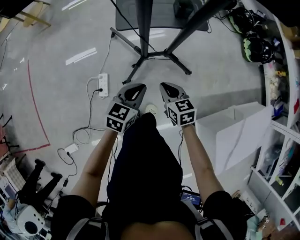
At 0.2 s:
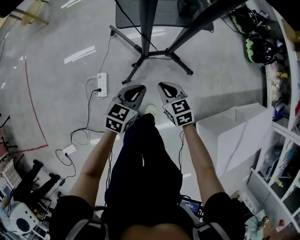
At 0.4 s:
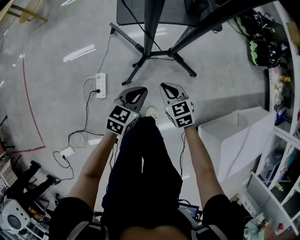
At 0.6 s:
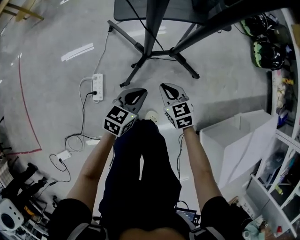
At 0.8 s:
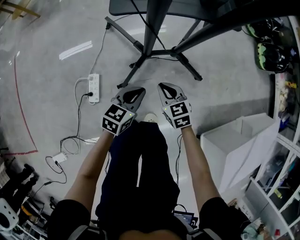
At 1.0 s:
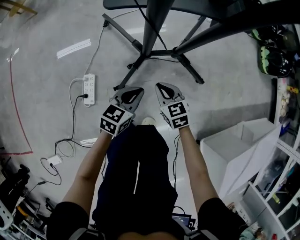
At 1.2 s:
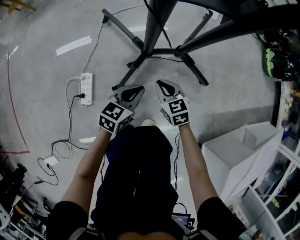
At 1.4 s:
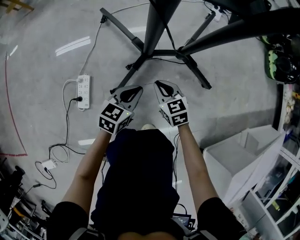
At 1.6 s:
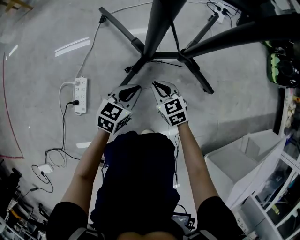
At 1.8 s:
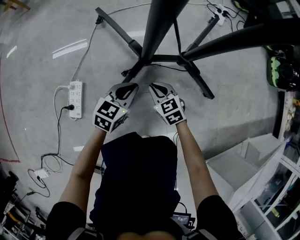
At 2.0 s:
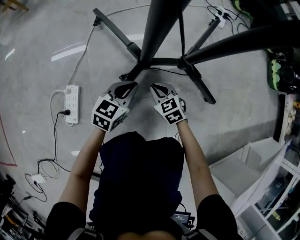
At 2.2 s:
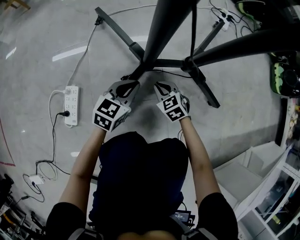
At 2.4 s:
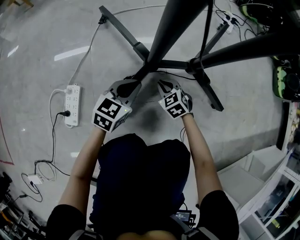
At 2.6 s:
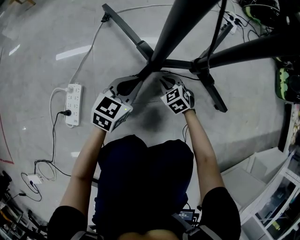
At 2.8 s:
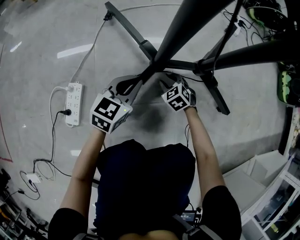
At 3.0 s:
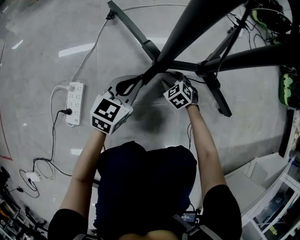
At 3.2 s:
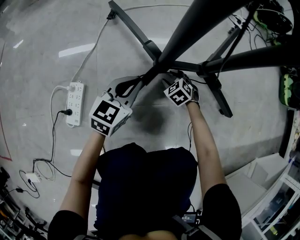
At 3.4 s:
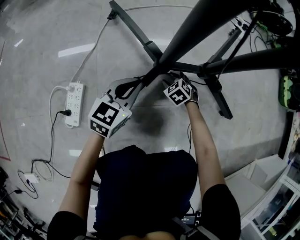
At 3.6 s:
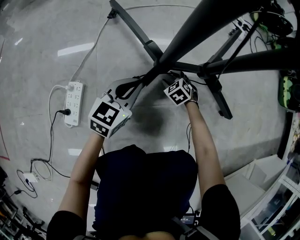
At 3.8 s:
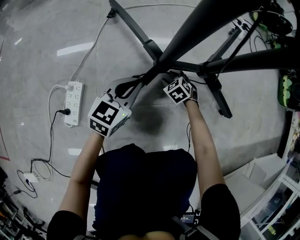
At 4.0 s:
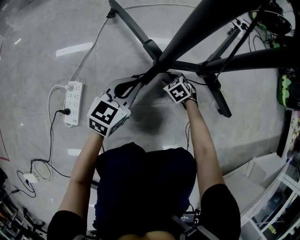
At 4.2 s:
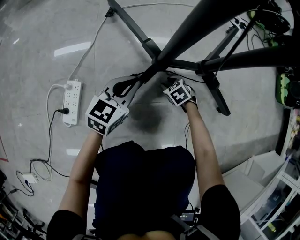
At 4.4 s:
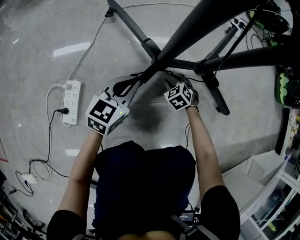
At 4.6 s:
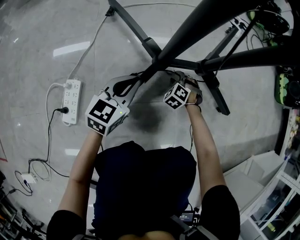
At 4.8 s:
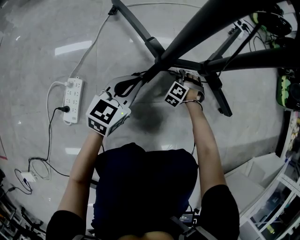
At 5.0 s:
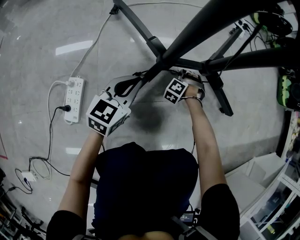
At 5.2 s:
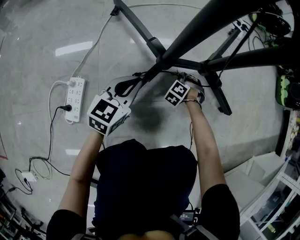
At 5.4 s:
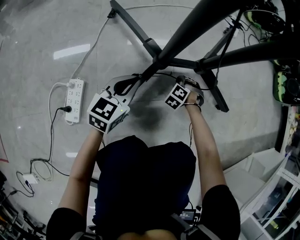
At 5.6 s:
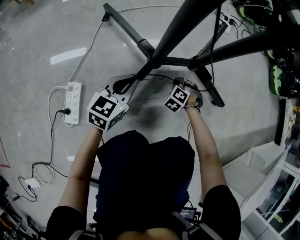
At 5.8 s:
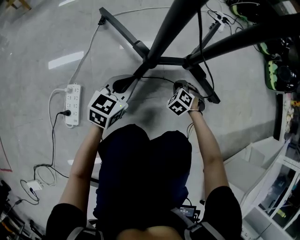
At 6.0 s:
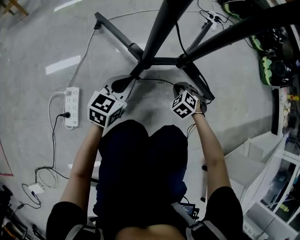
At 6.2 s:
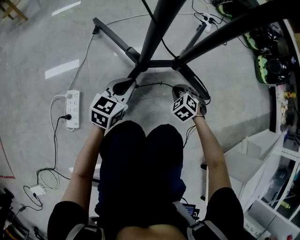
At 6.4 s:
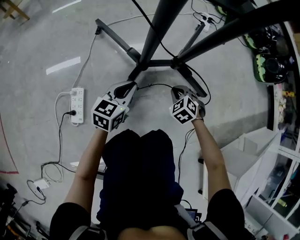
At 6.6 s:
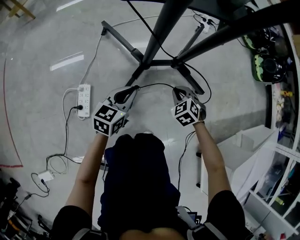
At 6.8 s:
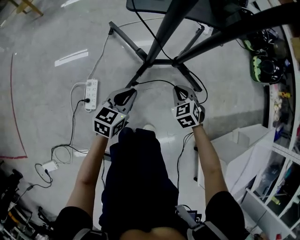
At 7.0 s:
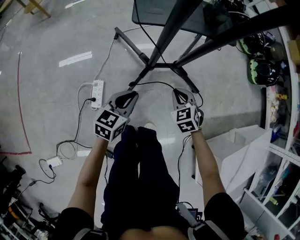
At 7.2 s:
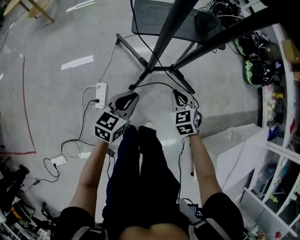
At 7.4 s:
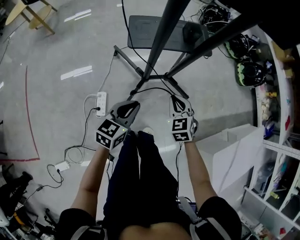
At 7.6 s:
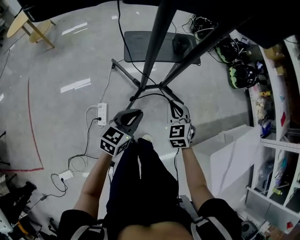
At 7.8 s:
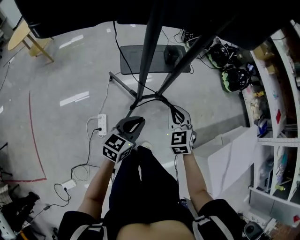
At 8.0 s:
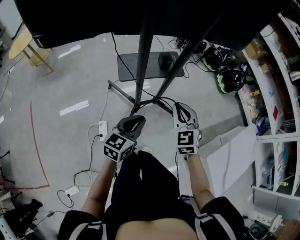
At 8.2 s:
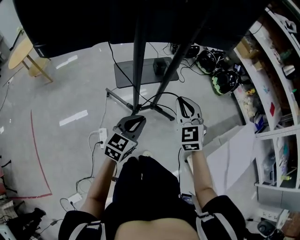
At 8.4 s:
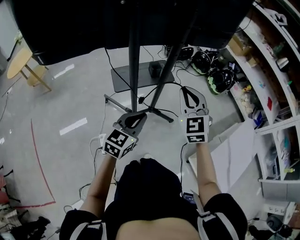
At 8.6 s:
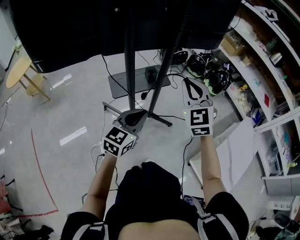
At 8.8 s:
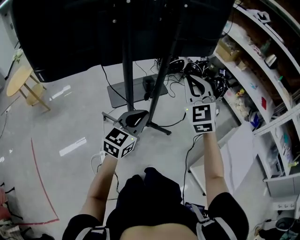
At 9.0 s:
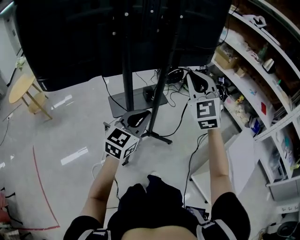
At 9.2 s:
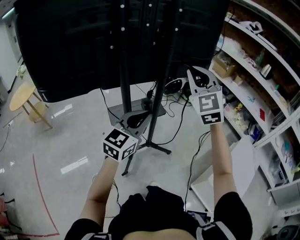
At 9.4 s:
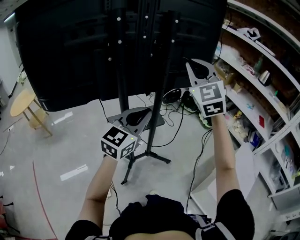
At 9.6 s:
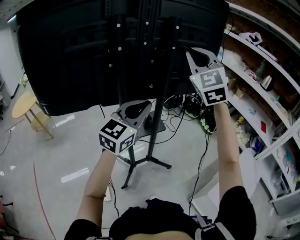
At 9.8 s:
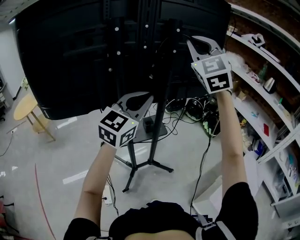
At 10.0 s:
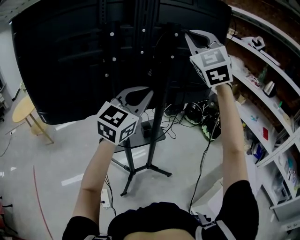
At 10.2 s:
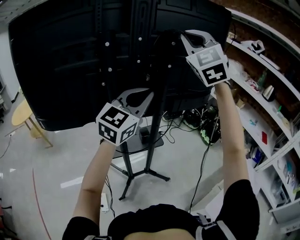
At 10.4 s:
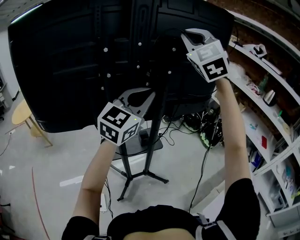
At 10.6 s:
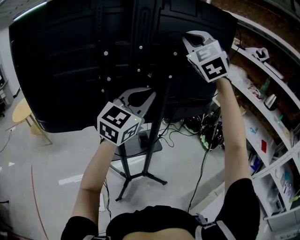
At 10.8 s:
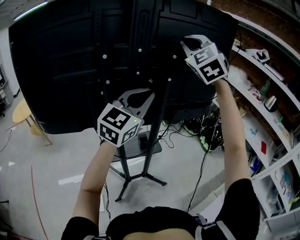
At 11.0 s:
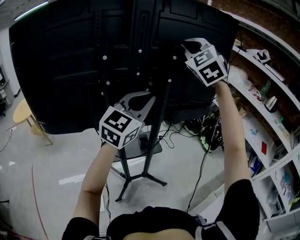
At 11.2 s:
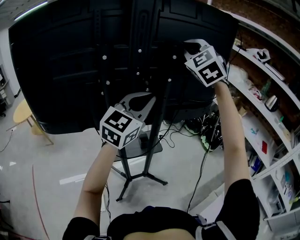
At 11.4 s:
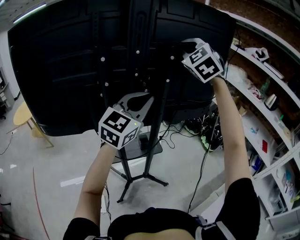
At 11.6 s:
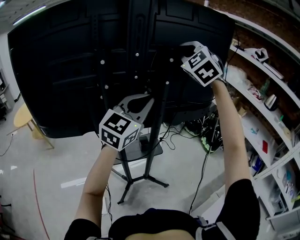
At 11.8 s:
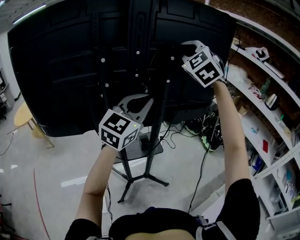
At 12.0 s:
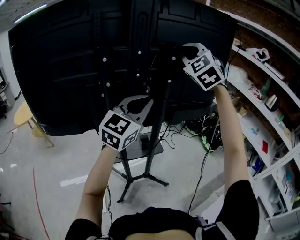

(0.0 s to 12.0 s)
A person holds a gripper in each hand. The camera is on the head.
0.0 s - 1.6 s: The two grippers go approximately 40 cm downward.
1.6 s - 3.0 s: The left gripper moves downward and forward, about 10 cm; the right gripper moves downward and forward, approximately 25 cm, swivels some 30 degrees, and opens up.
3.0 s - 4.4 s: There are only small adjustments of the grippers.
4.4 s - 6.0 s: The right gripper is displaced upward by some 10 cm, and closes its fingers. The left gripper changes place by about 5 cm.
6.0 s - 7.6 s: Both grippers move upward, roughly 60 cm. The right gripper changes its angle by roughly 40 degrees.
7.6 s - 9.0 s: The two grippers go about 40 cm upward. The left gripper swivels approximately 30 degrees; the right gripper points its fingers approximately 40 degrees further upward.
9.0 s - 10.4 s: The grippers both shift upward and forward by about 35 cm.
10.4 s - 12.0 s: The right gripper travels downward by some 5 cm.

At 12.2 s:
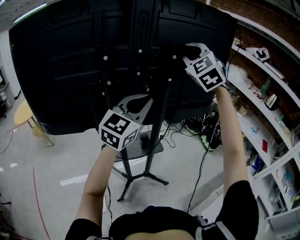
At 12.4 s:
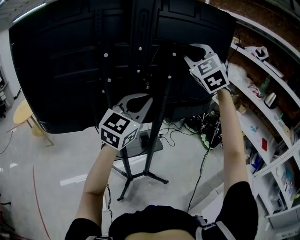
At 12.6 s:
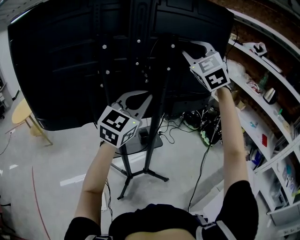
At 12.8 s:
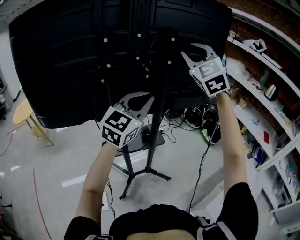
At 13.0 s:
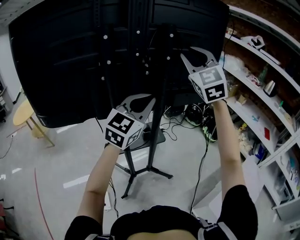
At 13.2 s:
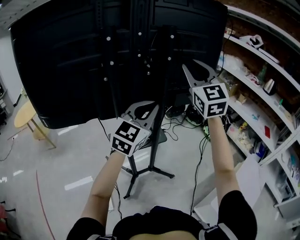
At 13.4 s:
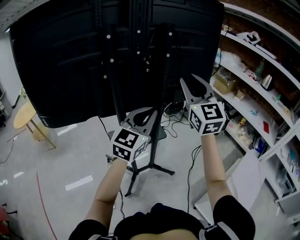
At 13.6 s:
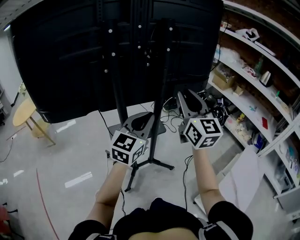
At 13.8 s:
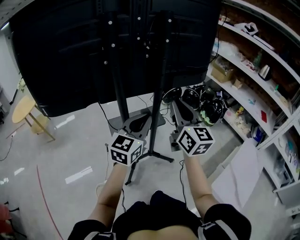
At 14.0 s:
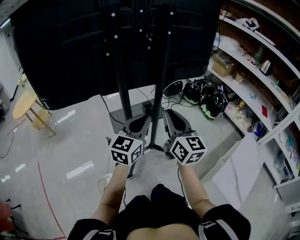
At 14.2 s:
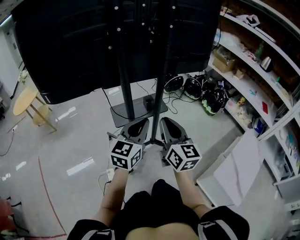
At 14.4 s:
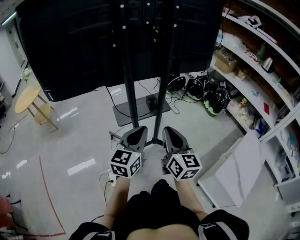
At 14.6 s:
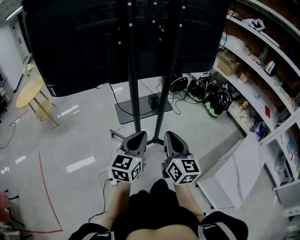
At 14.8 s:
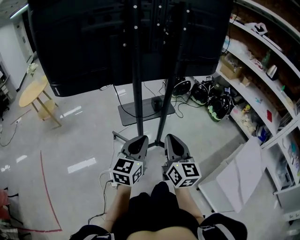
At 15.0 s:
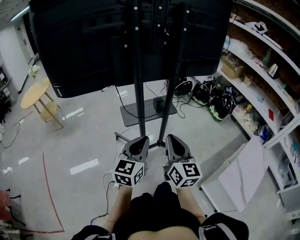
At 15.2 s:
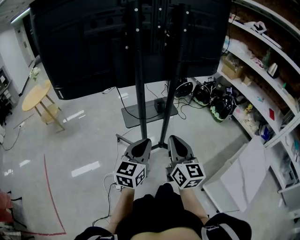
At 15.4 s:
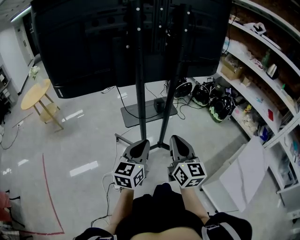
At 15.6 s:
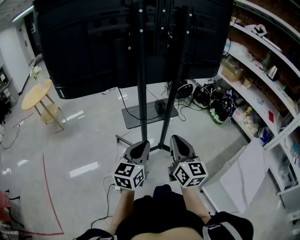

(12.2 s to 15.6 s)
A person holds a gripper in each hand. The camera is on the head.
12.2 s - 13.8 s: The left gripper heads downward and backward, covering about 25 cm. Meanwhile the right gripper is displaced downward and backward by about 35 cm, and rotates around the line of its fingers by some 60 degrees, clockwise from behind.
13.8 s - 15.6 s: The left gripper shifts about 20 cm backward, downward and to the left. Meanwhile the right gripper heads backward and downward, covering about 20 cm.

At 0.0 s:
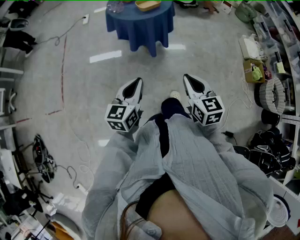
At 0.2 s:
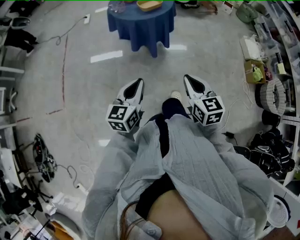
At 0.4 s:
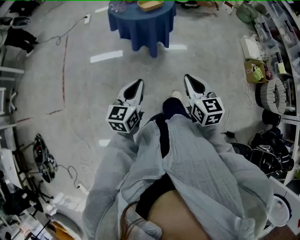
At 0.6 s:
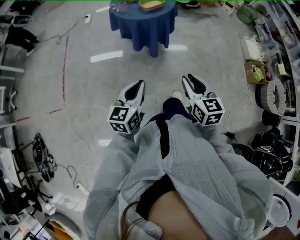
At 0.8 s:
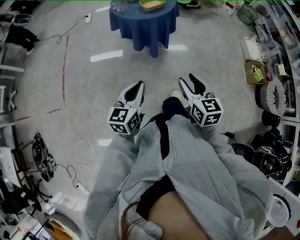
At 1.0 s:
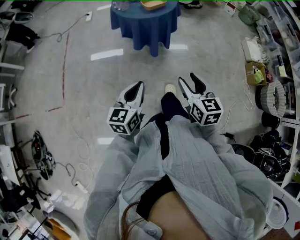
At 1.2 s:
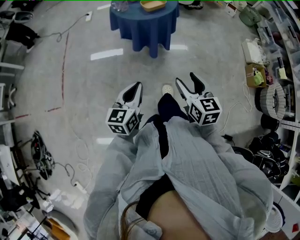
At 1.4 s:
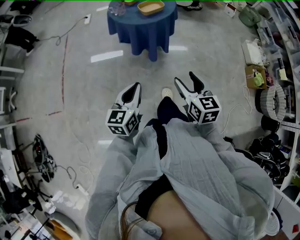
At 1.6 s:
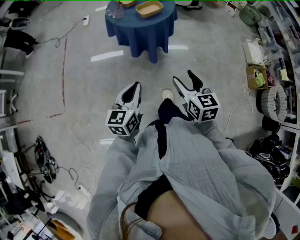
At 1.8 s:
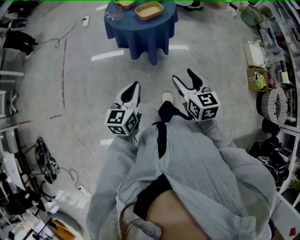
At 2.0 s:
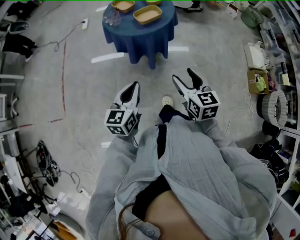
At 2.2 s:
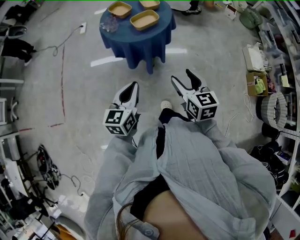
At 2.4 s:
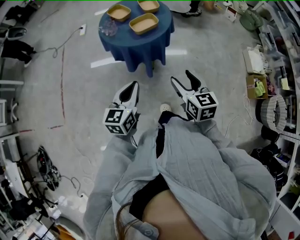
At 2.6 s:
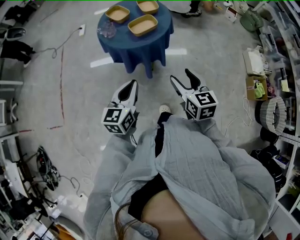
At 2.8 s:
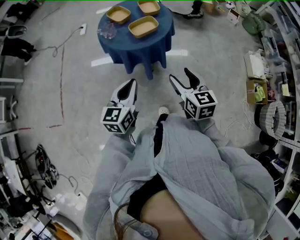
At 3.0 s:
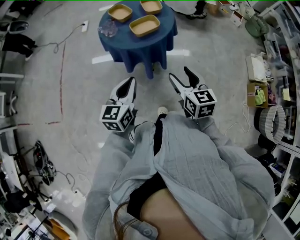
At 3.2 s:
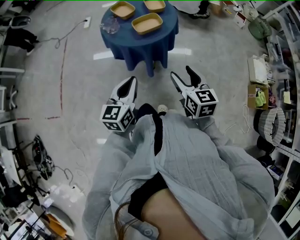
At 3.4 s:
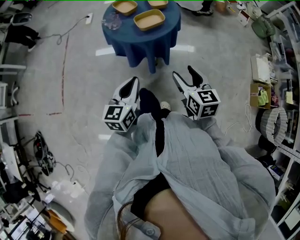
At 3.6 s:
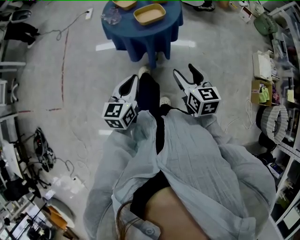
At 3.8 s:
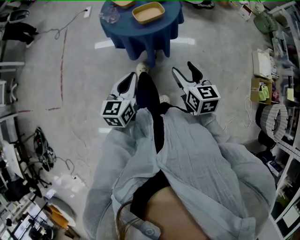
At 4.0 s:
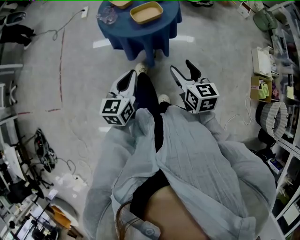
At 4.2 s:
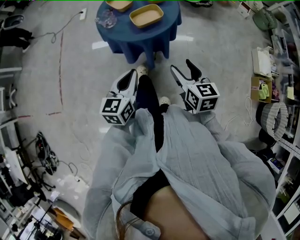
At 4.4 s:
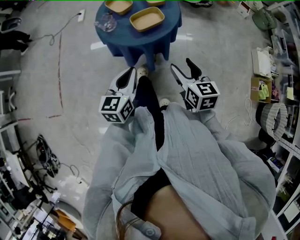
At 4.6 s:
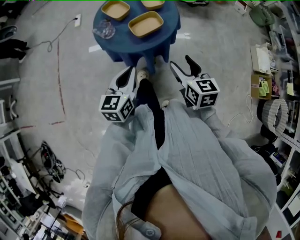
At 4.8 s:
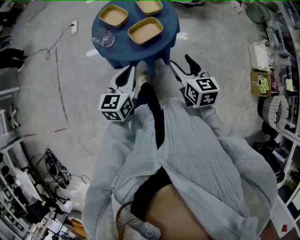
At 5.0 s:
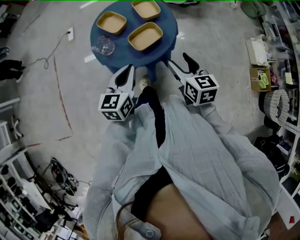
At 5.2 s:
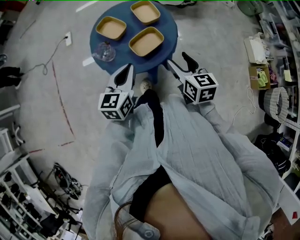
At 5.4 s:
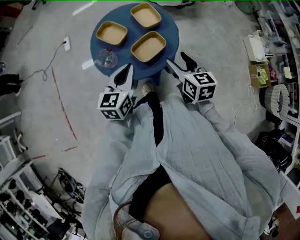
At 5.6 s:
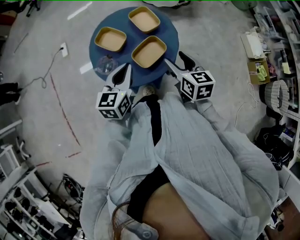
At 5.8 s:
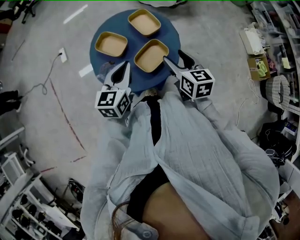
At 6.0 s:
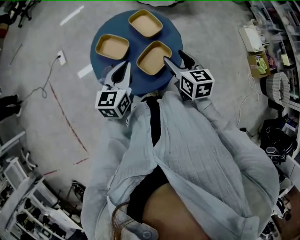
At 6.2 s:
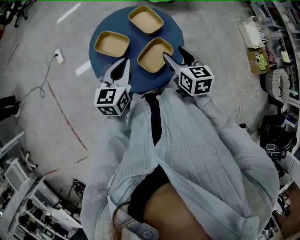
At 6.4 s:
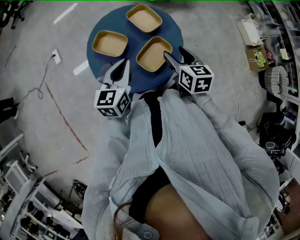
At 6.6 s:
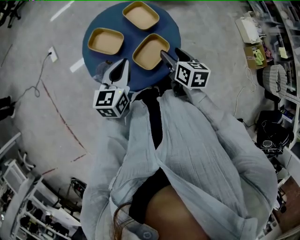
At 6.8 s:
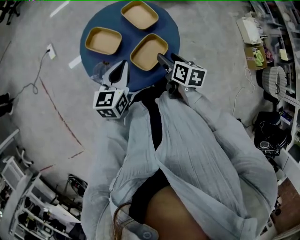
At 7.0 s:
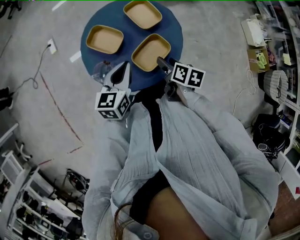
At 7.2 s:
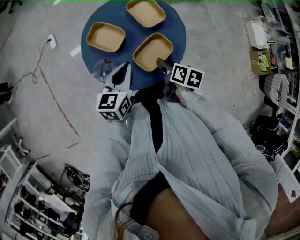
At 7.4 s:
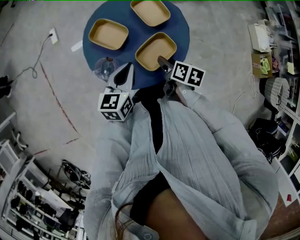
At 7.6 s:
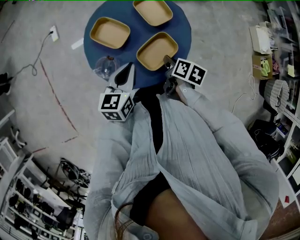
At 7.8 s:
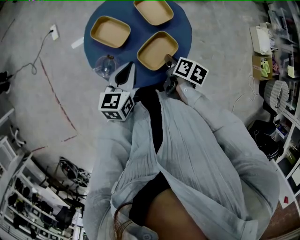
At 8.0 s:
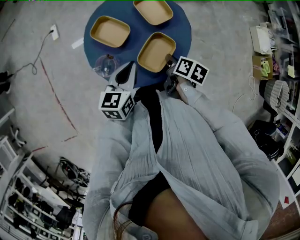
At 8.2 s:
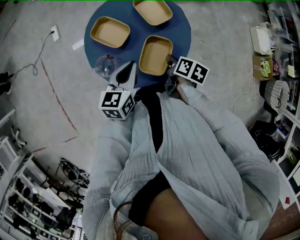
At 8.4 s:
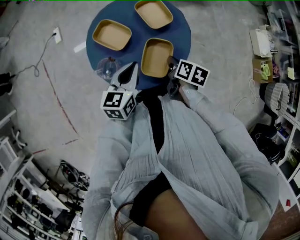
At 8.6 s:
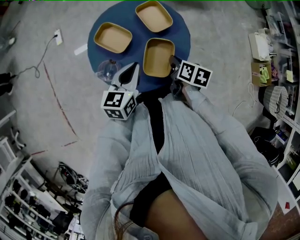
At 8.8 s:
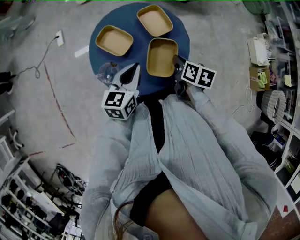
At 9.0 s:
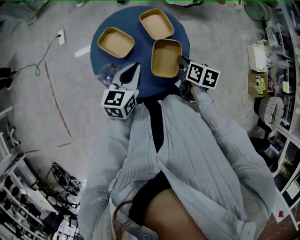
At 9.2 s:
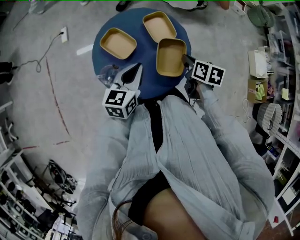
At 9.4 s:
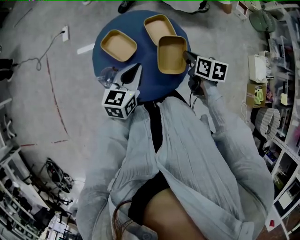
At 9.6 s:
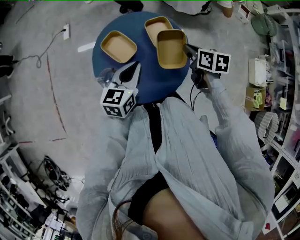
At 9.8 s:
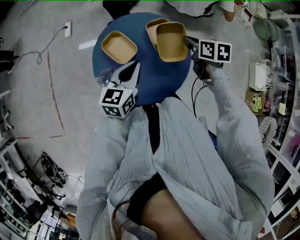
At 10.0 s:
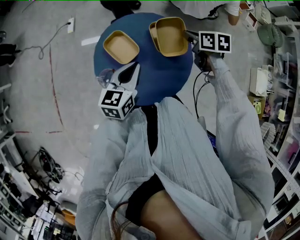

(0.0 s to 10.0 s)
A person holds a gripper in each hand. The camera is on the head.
0.0 s - 1.4 s: The right gripper moves forward, approximately 5 cm, and opens.
1.4 s - 2.8 s: Both grippers move forward, some 20 cm.
2.8 s - 4.2 s: The grippers move only a little.
4.2 s - 5.8 s: Both grippers move forward, about 30 cm.
5.8 s - 7.2 s: The left gripper heads downward, covering roughly 5 cm. Meanwhile the right gripper heads downward, covering roughly 15 cm, and changes its angle by roughly 40 degrees.
7.2 s - 8.6 s: The right gripper closes.
8.6 s - 10.0 s: The left gripper goes roughly 5 cm forward. Meanwhile the right gripper travels forward by some 20 cm, and turns by some 40 degrees.
